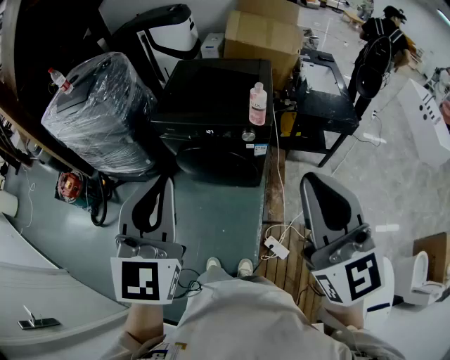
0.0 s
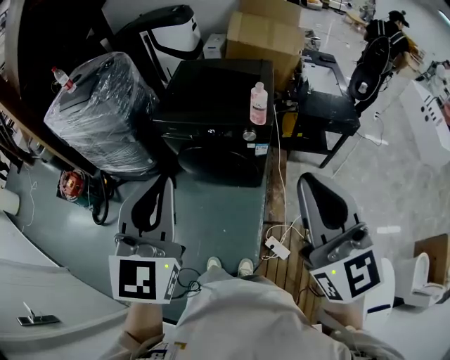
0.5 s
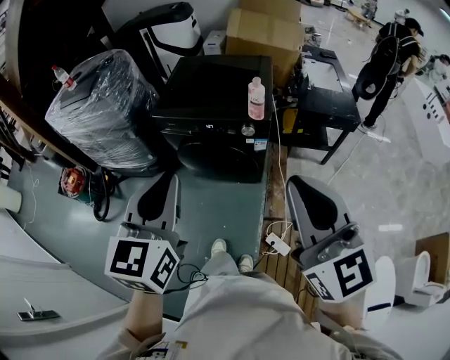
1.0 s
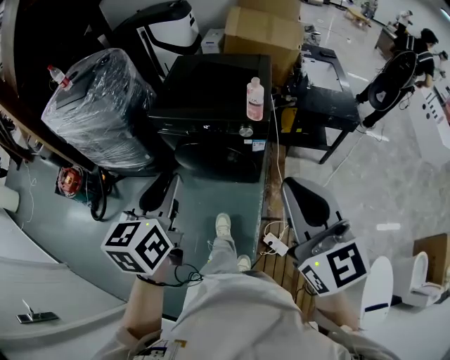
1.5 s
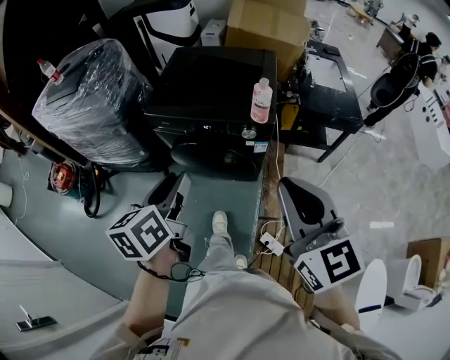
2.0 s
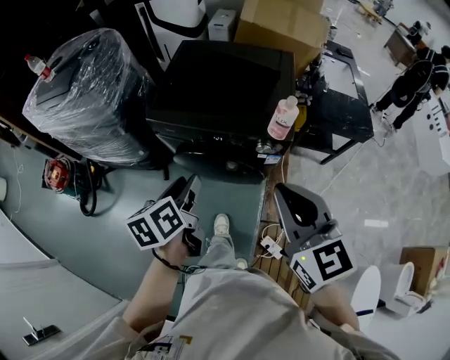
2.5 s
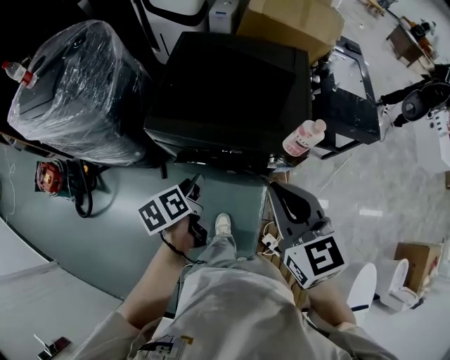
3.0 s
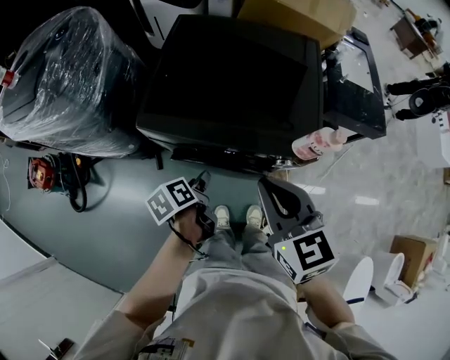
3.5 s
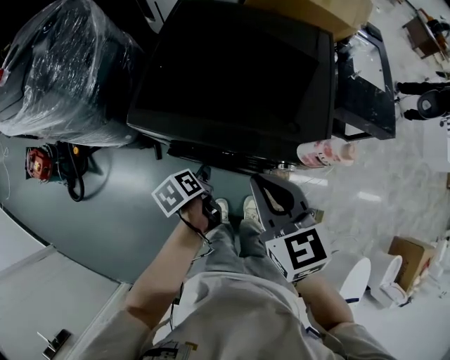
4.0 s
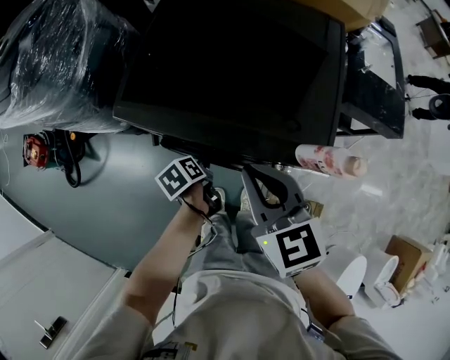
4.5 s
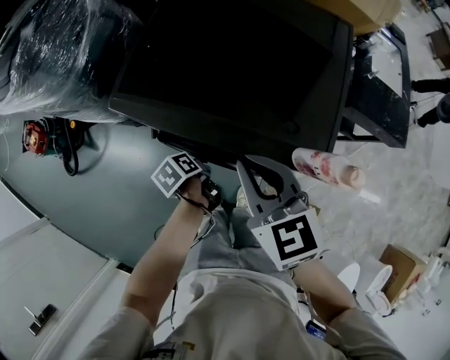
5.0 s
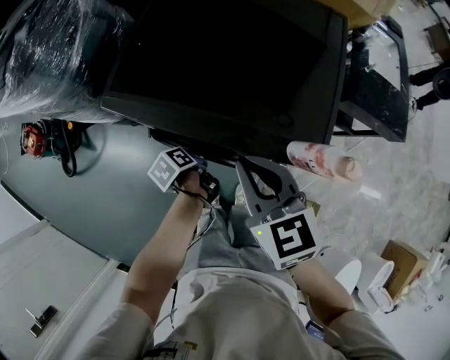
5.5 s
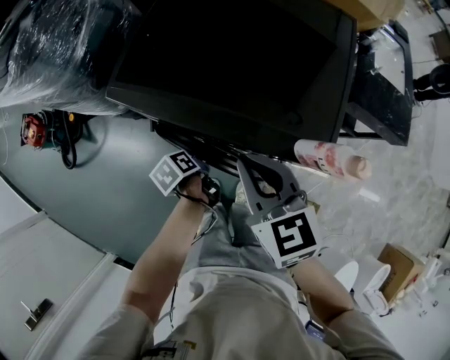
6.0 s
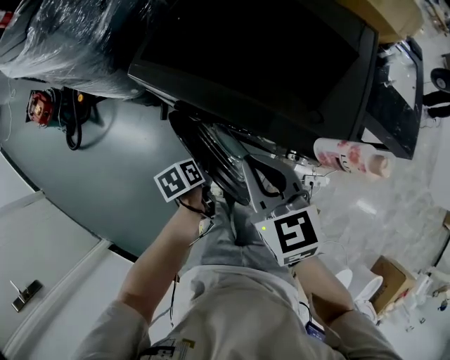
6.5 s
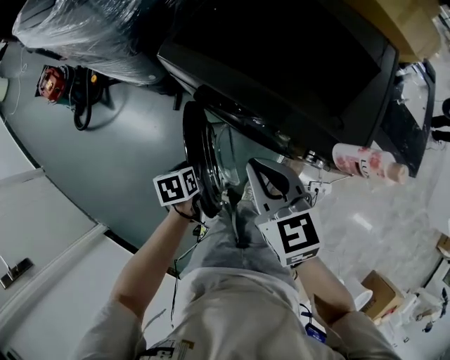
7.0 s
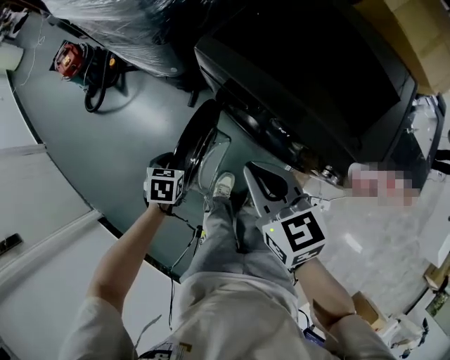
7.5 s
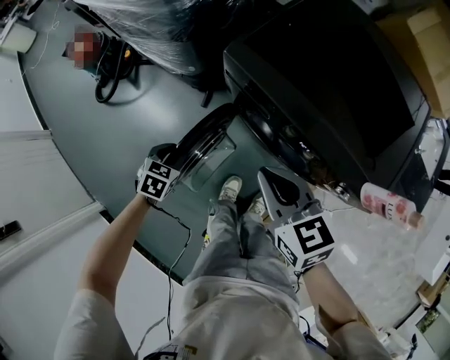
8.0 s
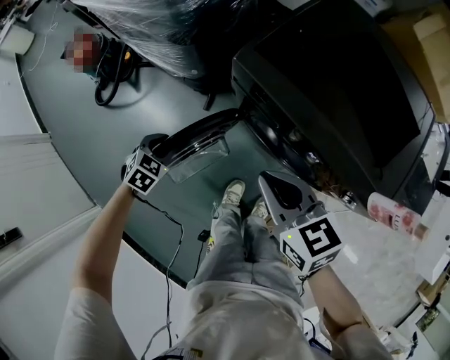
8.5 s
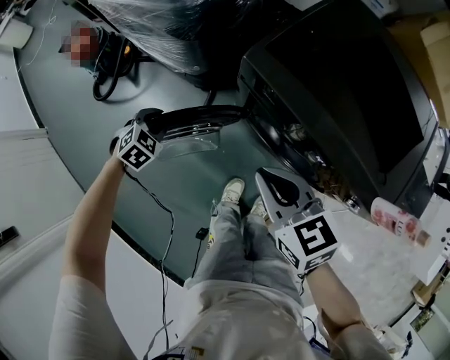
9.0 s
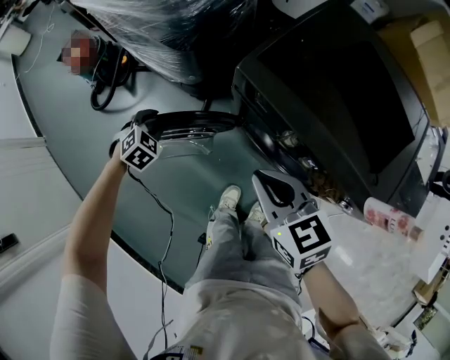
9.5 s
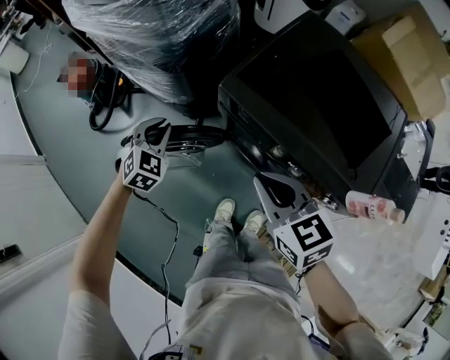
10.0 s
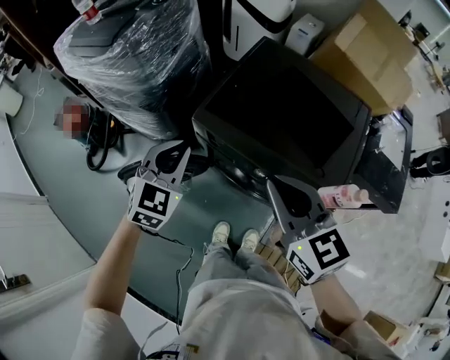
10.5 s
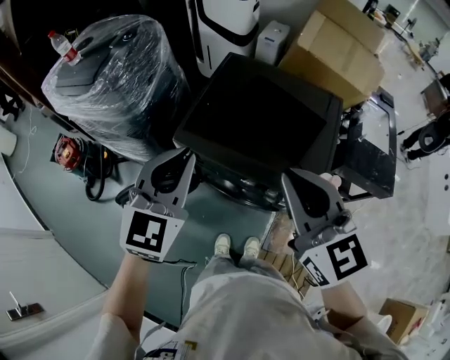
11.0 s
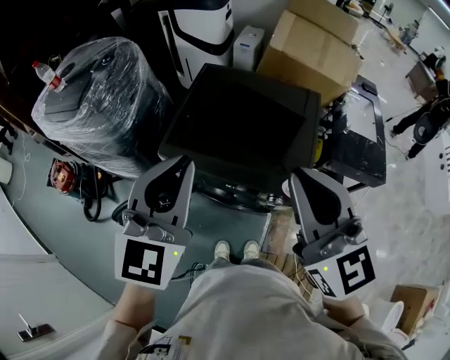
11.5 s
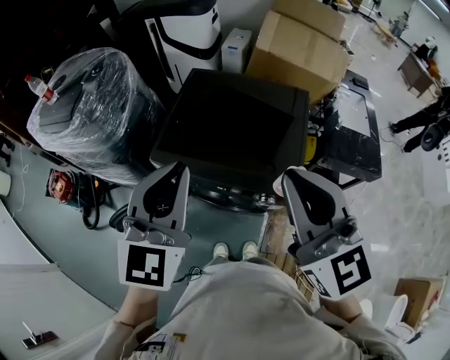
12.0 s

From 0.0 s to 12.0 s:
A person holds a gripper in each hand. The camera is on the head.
From 0.0 s to 2.0 s: The left gripper is displaced downward and forward by some 20 cm, rolls counterclockwise, seen from behind, by approximately 50 degrees, and opens up. Meanwhile the right gripper is displaced downward and forward by some 10 cm.
From 2.0 s to 4.0 s: The left gripper is displaced downward and forward by approximately 40 cm, and points its fingers roughly 30 degrees further downward. Meanwhile the right gripper goes approximately 40 cm forward, downward and to the left, and turns by some 20 degrees.
From 4.0 s to 6.0 s: The left gripper shifts roughly 10 cm downward; the right gripper goes approximately 5 cm downward.
From 6.0 s to 8.0 s: The left gripper shifts about 25 cm to the left, and rotates around the line of its fingers by about 60 degrees, clockwise from behind. The right gripper is displaced to the left by approximately 15 cm, and turns by about 20 degrees.
From 8.0 s to 10.0 s: The right gripper heads upward, covering some 5 cm; the left gripper is displaced forward and upward by some 20 cm, and rotates roughly 30 degrees.
From 10.0 s to 12.0 s: Both grippers move upward, about 35 cm. The right gripper points its fingers approximately 30 degrees further upward. Meanwhile the left gripper points its fingers roughly 40 degrees further upward.

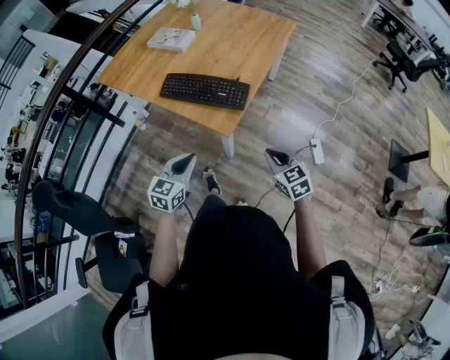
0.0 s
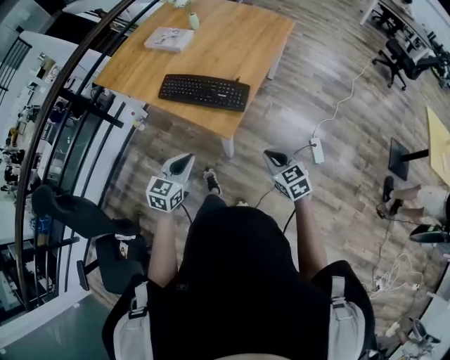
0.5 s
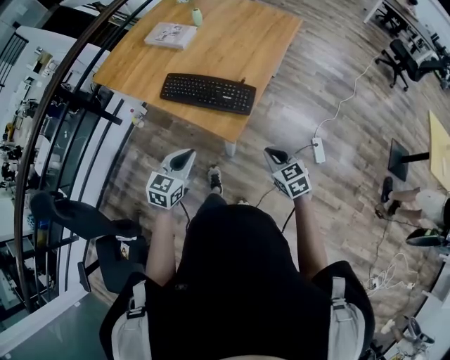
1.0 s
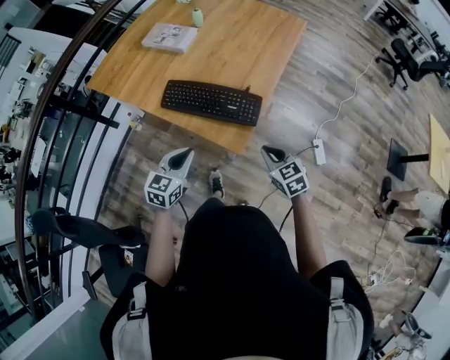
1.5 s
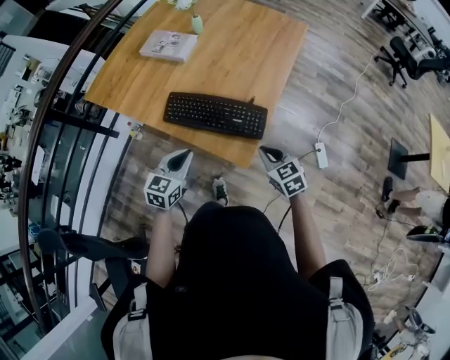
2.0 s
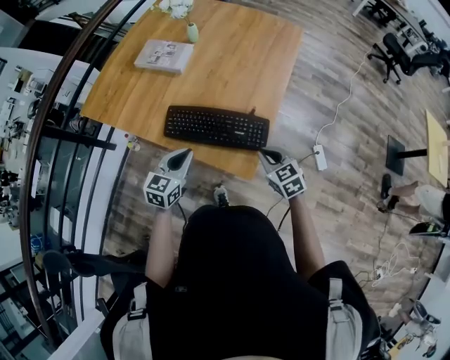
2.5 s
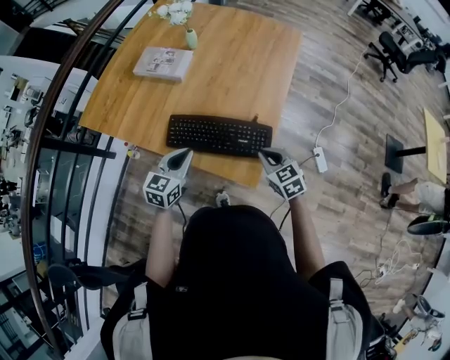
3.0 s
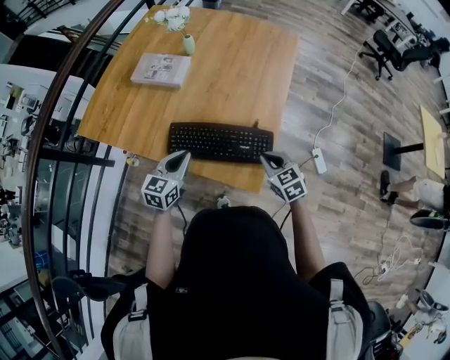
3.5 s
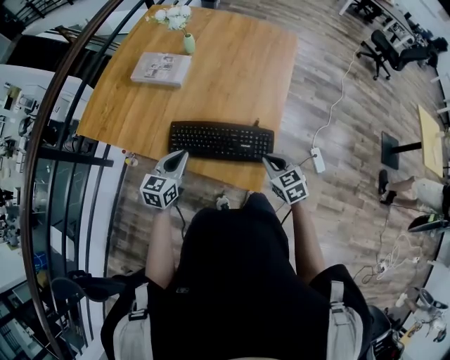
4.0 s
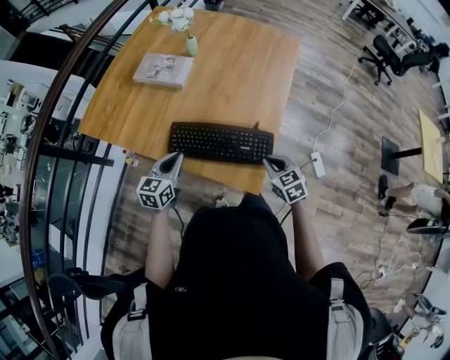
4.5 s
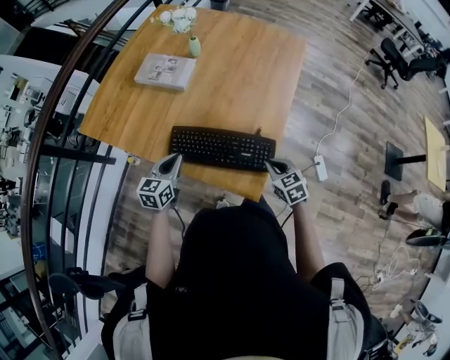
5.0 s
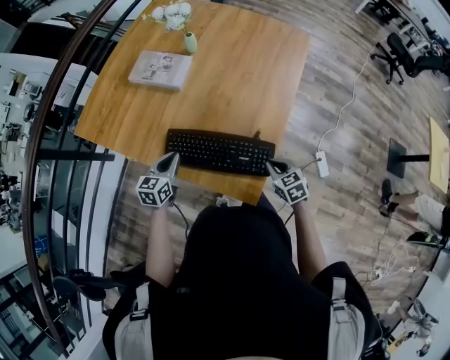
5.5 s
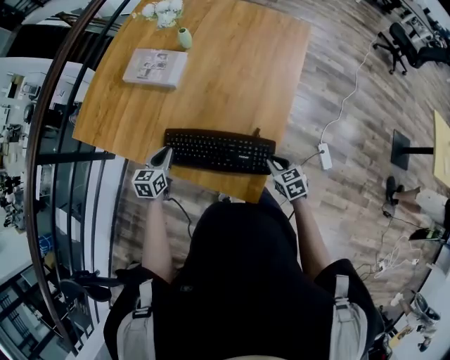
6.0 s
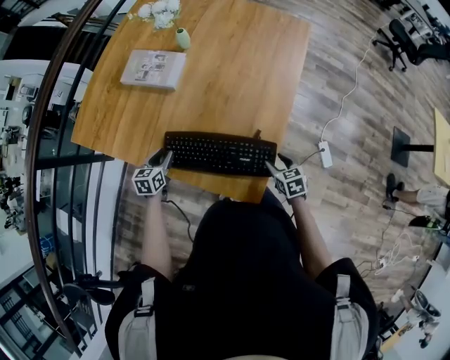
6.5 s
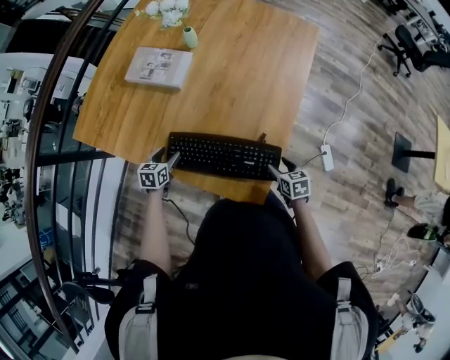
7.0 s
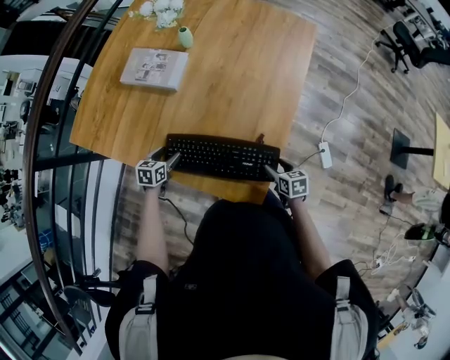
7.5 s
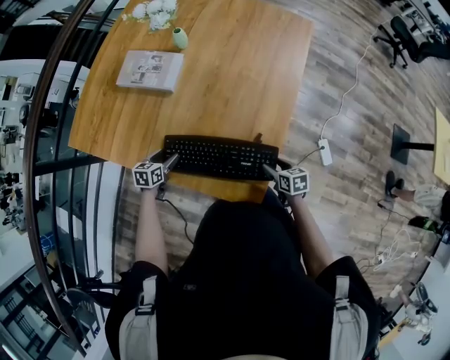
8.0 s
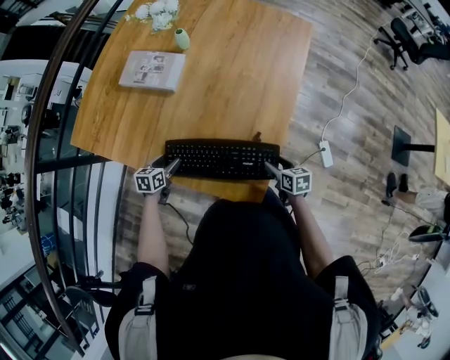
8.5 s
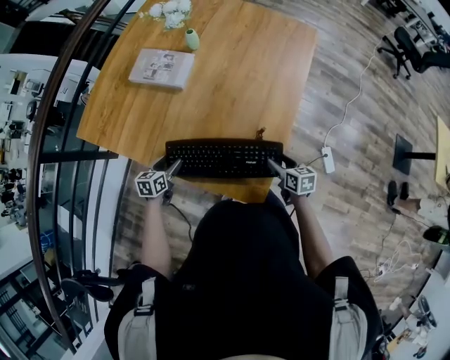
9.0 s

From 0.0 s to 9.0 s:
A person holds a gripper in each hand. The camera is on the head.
From 0.0 s to 2.0 s: The grippers both shift forward and to the left by some 20 cm.
From 2.0 s to 4.5 s: The left gripper shifts approximately 15 cm forward and to the left. Meanwhile the right gripper moves forward, roughly 5 cm.
From 4.5 s to 7.0 s: The left gripper moves downward and forward, some 20 cm, turns by about 30 degrees, and opens its fingers; the right gripper is displaced downward, to the right and forward by approximately 15 cm, swivels about 20 degrees, and opens up.
From 7.0 s to 9.0 s: The grippers move only a little.

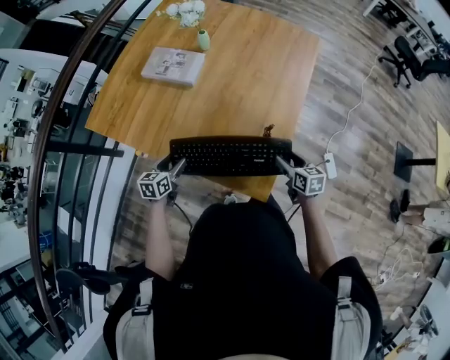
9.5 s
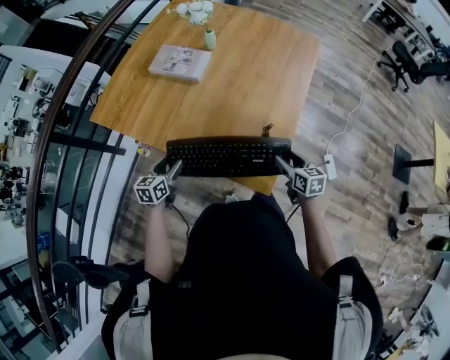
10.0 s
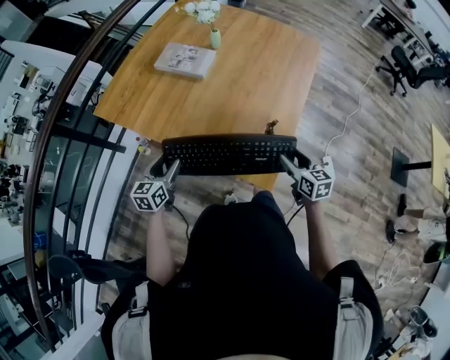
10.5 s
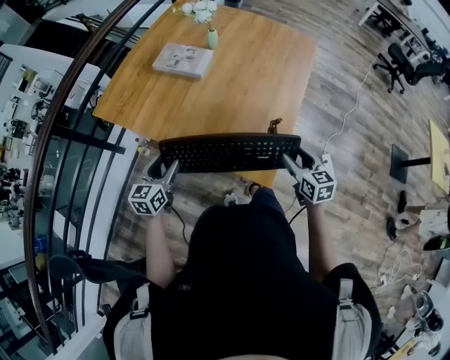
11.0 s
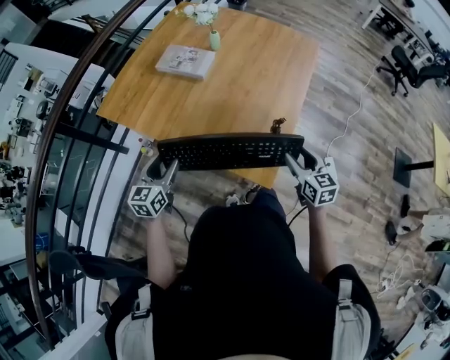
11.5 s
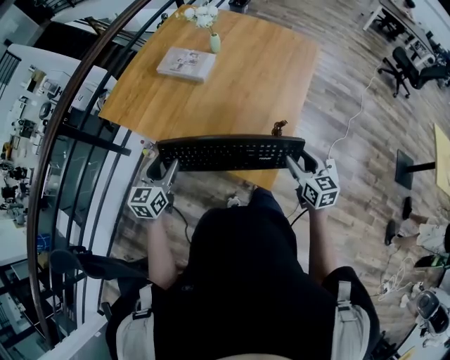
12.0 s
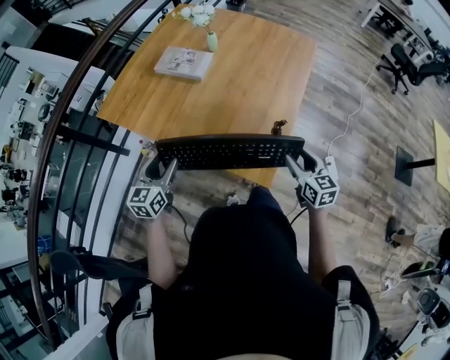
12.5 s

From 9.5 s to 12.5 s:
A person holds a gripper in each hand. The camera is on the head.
From 9.5 s to 11.0 s: Both grippers move upward and backward, roughly 15 cm.
From 11.0 s to 12.5 s: There are only small adjustments of the grippers.

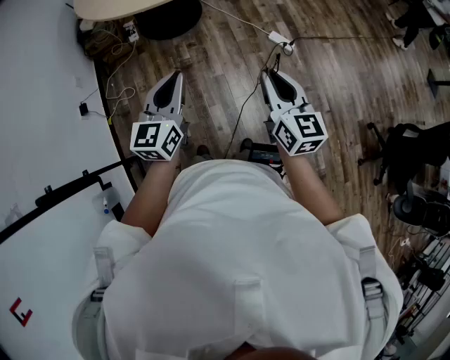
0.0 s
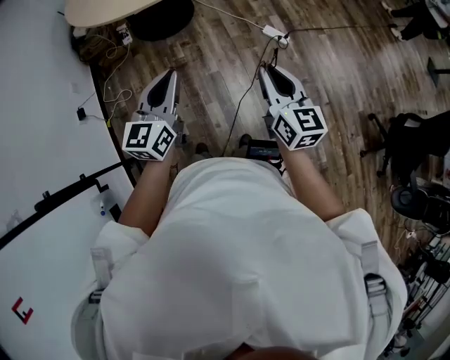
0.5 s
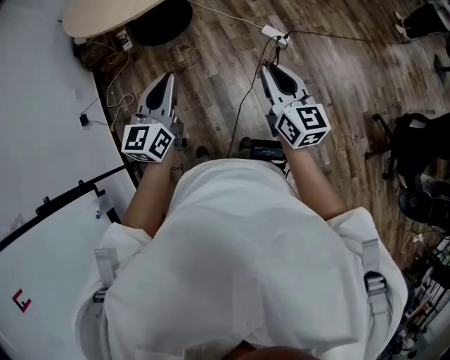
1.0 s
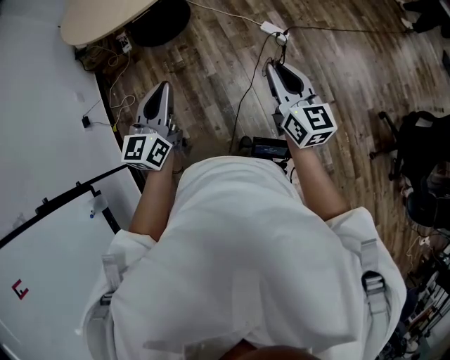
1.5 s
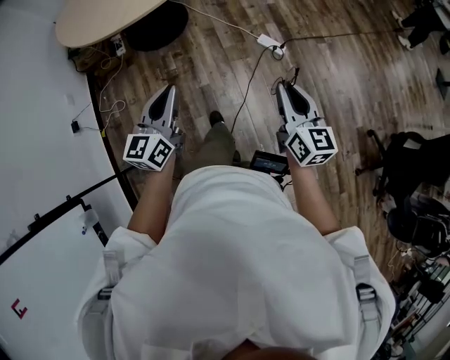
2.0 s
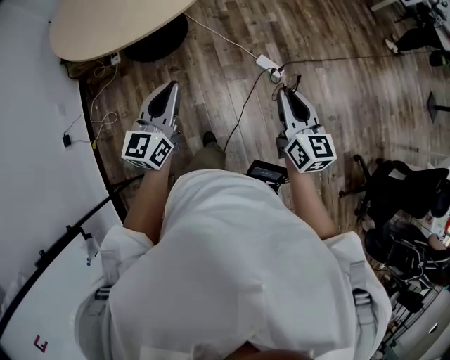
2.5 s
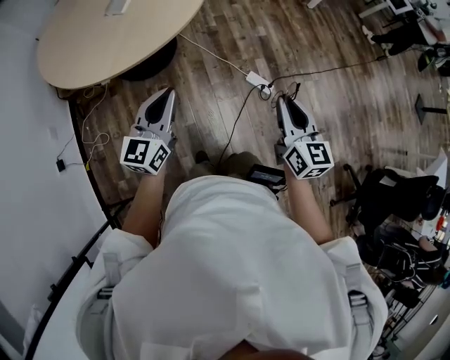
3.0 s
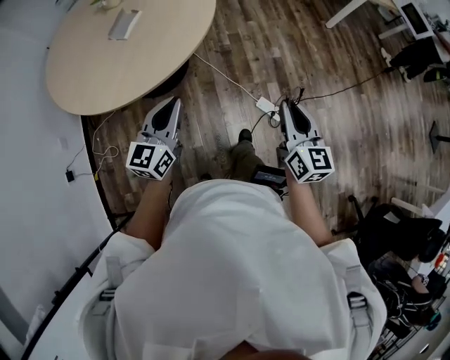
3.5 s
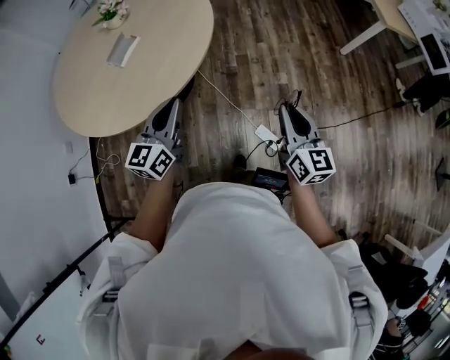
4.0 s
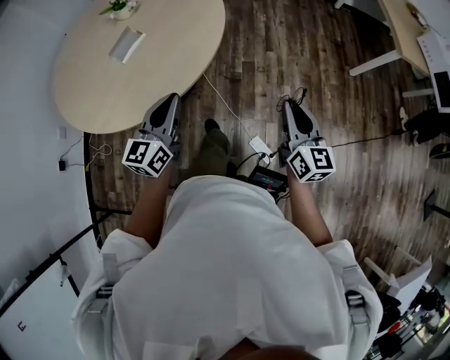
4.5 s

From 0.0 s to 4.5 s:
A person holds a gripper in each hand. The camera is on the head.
From 0.0 s to 2.0 s: The right gripper goes some 20 cm to the right. The left gripper heads to the right and forward, covering some 15 cm.
From 2.0 s to 4.5 s: The two grippers travel together, forward, about 60 cm.
